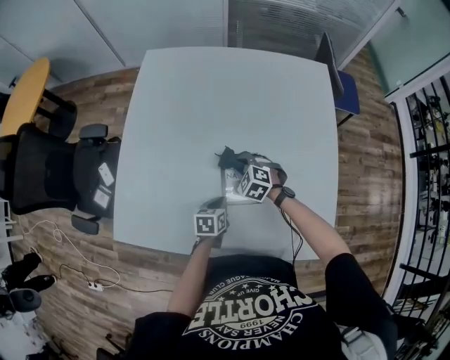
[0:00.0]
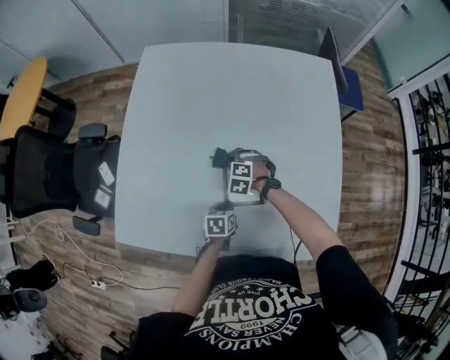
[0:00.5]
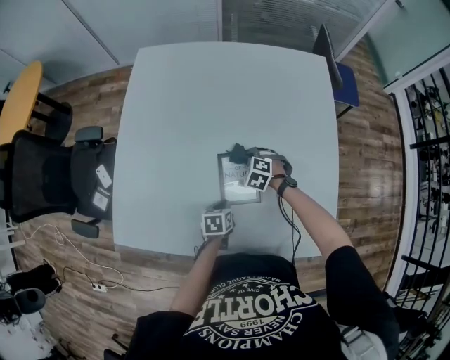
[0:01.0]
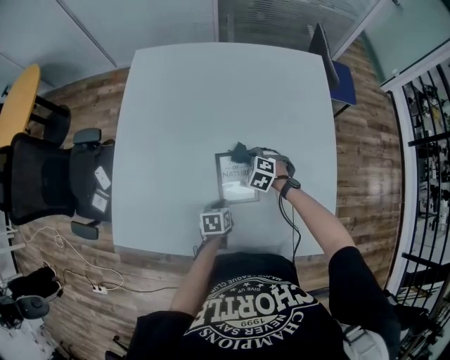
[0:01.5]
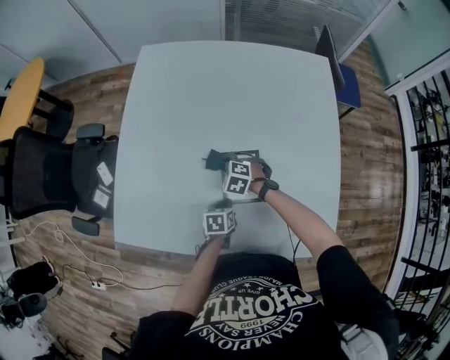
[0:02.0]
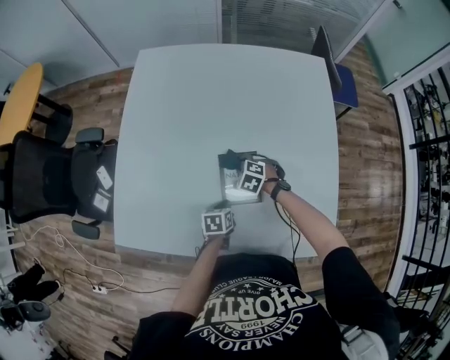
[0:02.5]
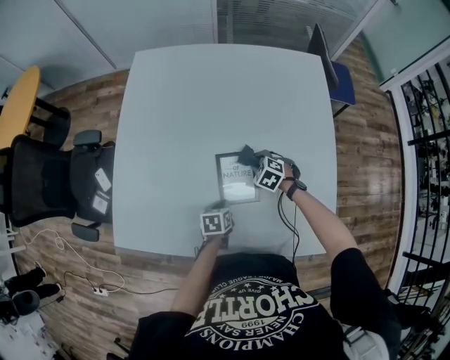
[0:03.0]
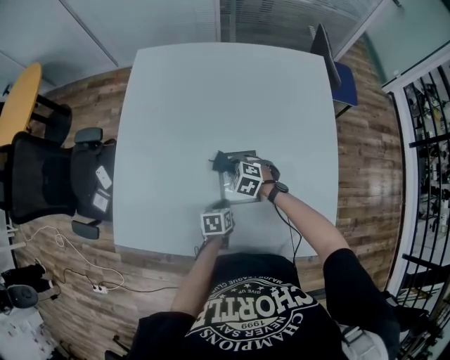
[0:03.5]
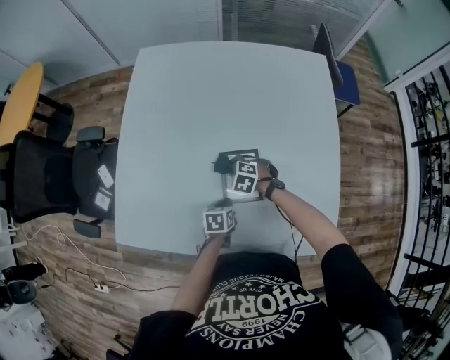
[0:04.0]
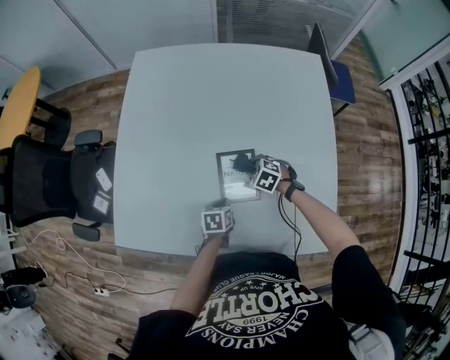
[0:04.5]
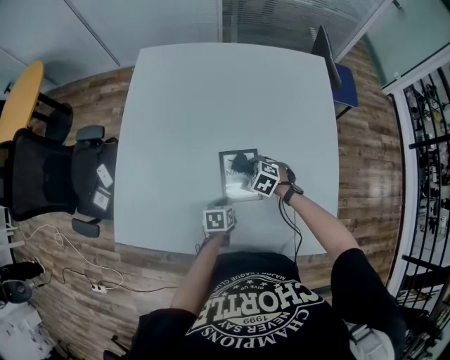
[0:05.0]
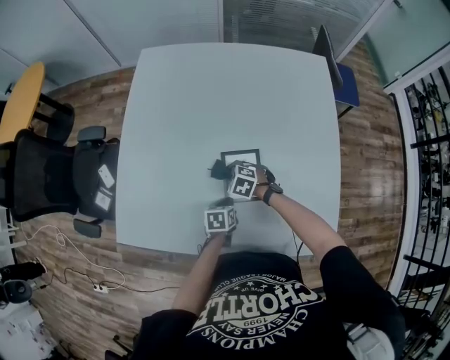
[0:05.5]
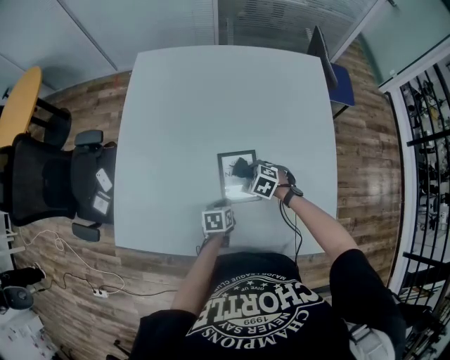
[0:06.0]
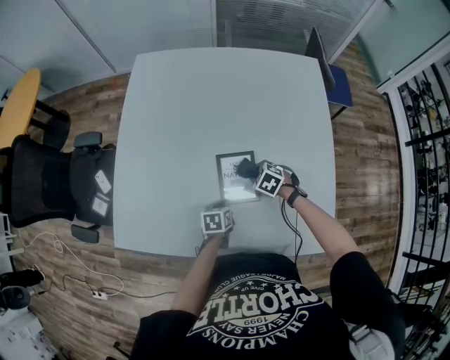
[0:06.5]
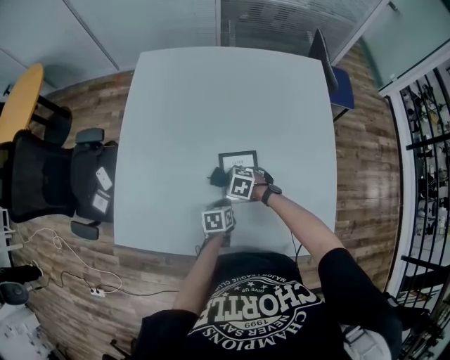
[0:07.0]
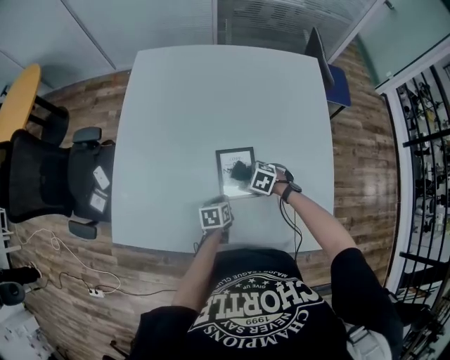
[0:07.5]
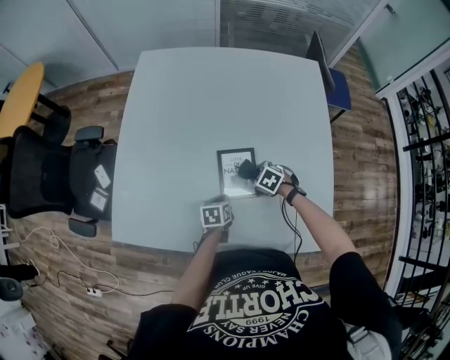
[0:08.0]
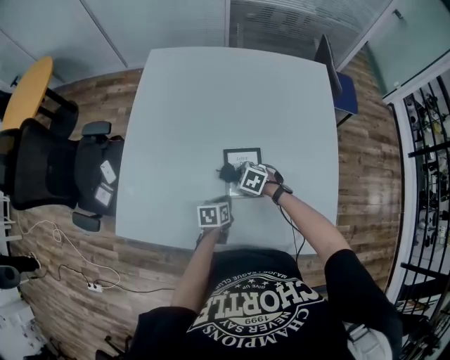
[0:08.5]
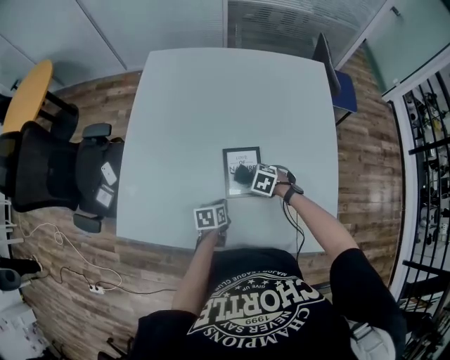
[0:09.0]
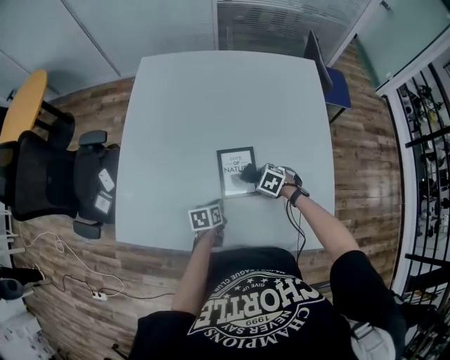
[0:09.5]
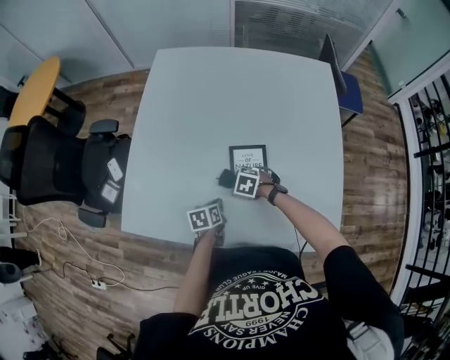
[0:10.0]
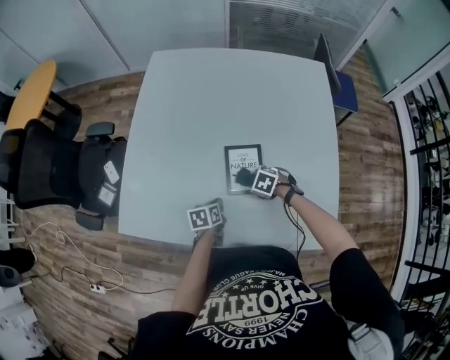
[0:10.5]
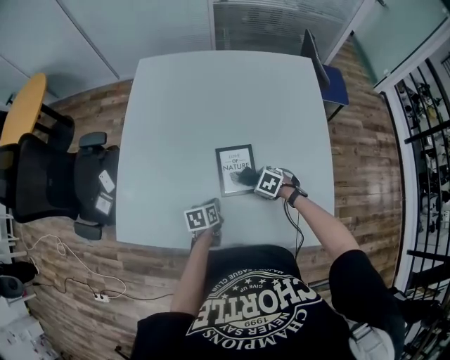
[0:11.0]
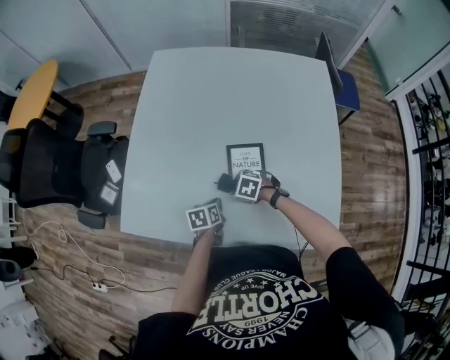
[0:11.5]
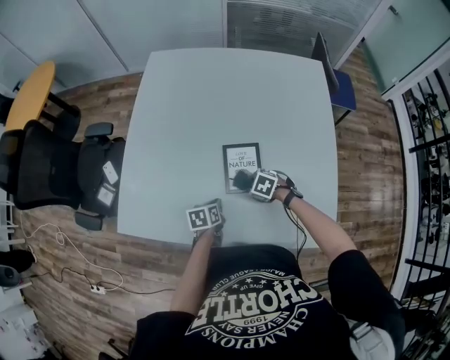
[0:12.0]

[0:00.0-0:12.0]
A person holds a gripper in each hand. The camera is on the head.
0:00.0 to 0:02.0: The right gripper goes about 5 cm to the left.
0:02.0 to 0:04.0: The right gripper reaches approximately 15 cm to the right, then returns.
0:04.0 to 0:06.0: The right gripper goes left and right, about 10 cm each way, reversing 2 times.
0:08.0 to 0:10.0: The right gripper changes place by about 15 cm, while the left gripper ends up approximately 10 cm from where it was.
0:10.0 to 0:12.0: The right gripper changes place by roughly 10 cm.

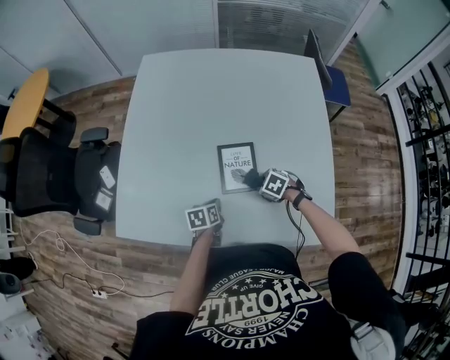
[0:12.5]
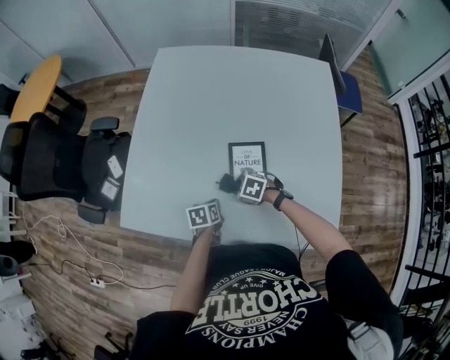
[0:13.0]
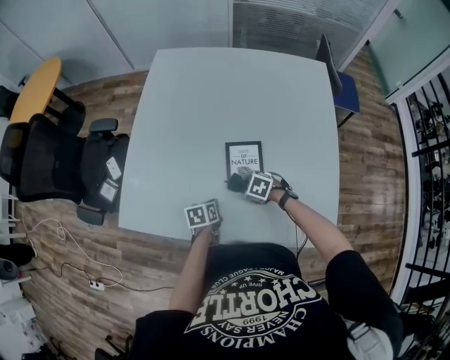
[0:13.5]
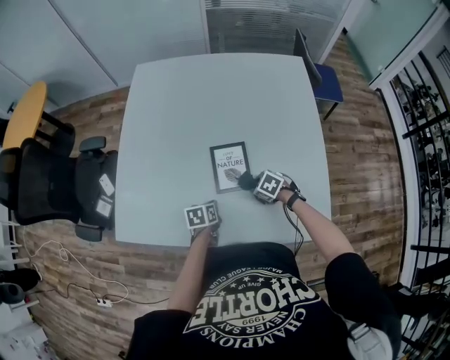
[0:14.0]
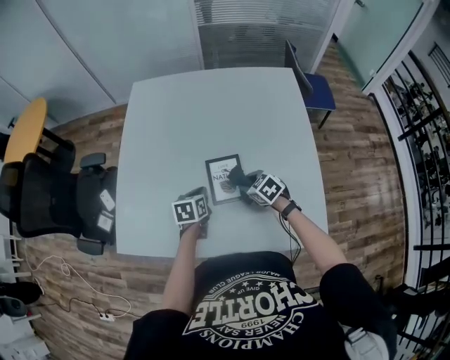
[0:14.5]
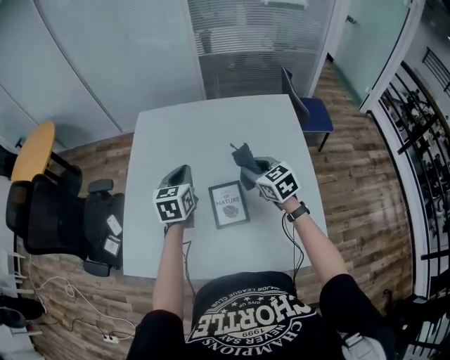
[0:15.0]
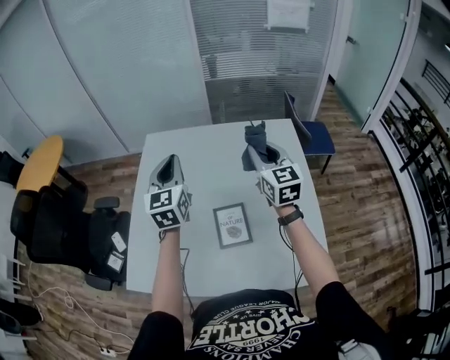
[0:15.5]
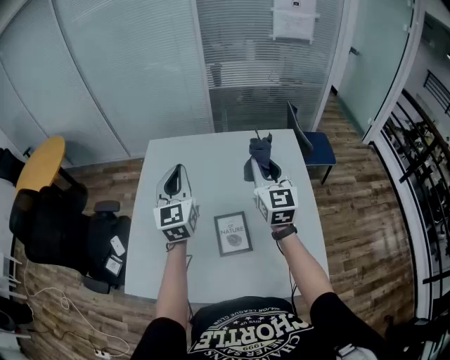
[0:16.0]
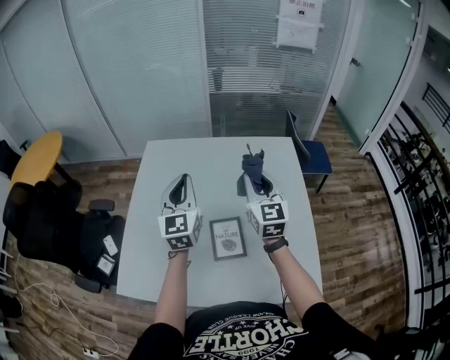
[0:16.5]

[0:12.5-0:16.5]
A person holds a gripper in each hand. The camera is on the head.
0:12.5 to 0:14.5: The grippers both shift upward by some 10 cm. The right gripper rotates approximately 30 degrees.
0:14.5 to 0:16.5: Both grippers travel together upward, approximately 35 cm. The right gripper points its fingers roughly 50 degrees further upward; the left gripper points its fingers approximately 50 degrees further upward.

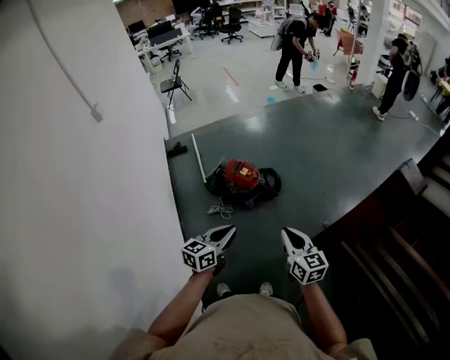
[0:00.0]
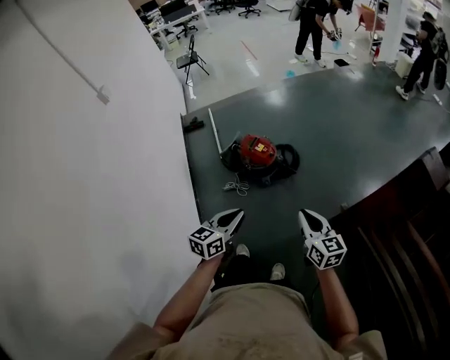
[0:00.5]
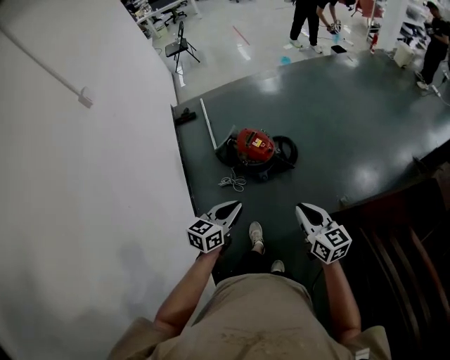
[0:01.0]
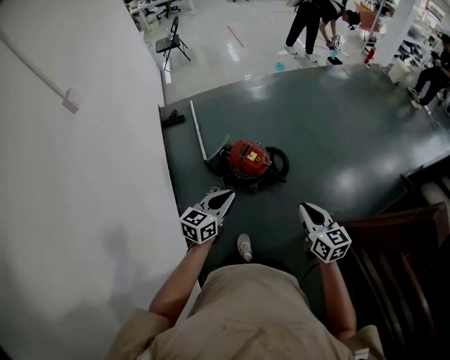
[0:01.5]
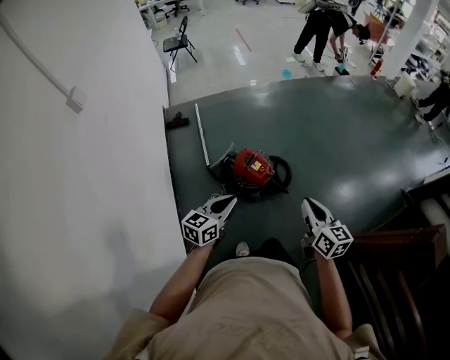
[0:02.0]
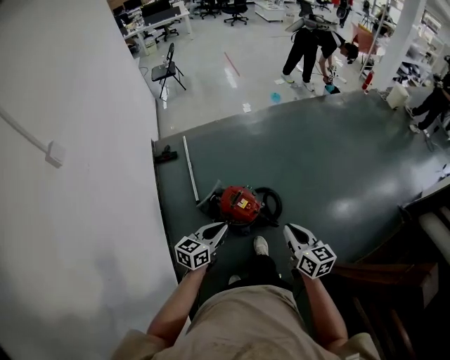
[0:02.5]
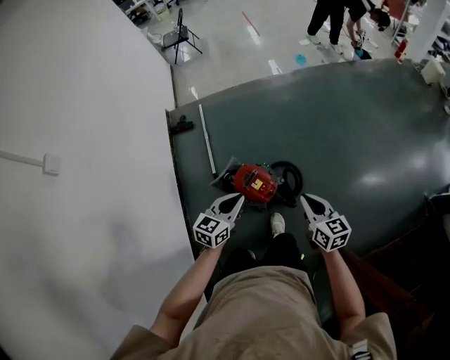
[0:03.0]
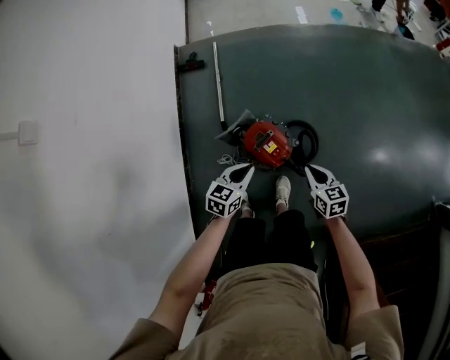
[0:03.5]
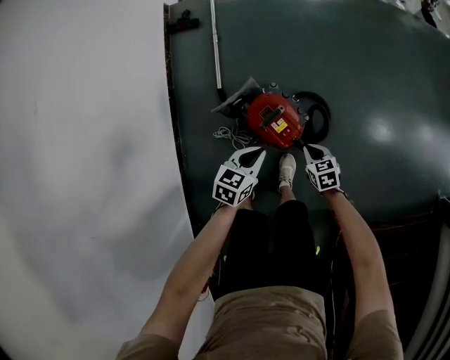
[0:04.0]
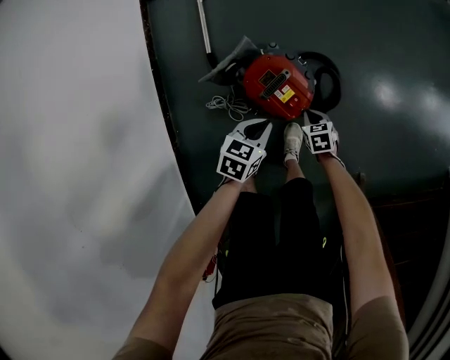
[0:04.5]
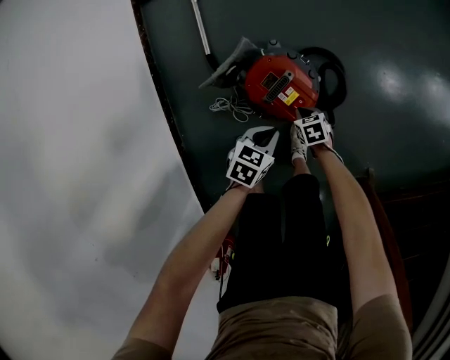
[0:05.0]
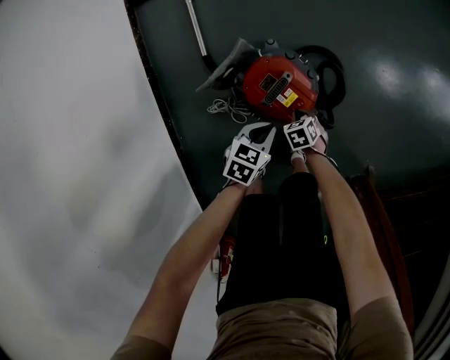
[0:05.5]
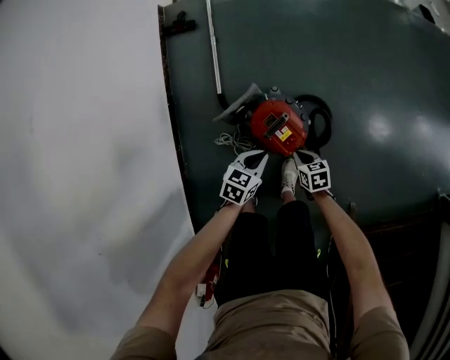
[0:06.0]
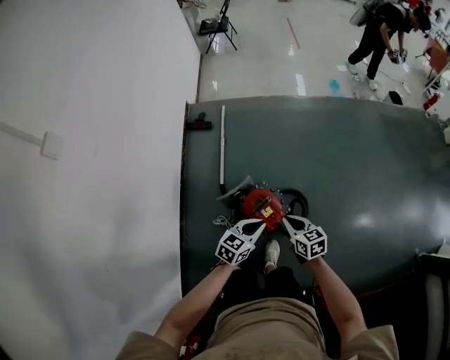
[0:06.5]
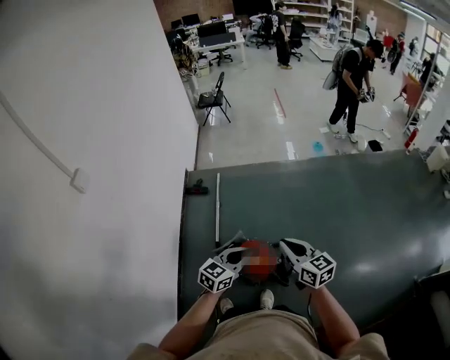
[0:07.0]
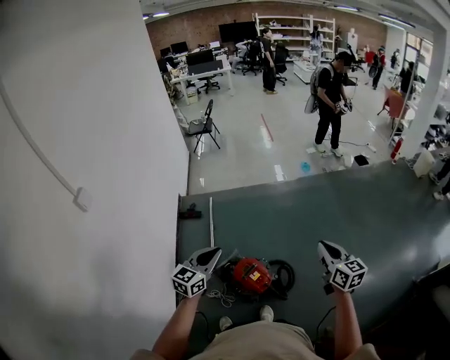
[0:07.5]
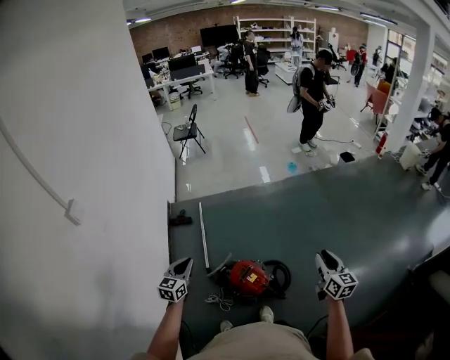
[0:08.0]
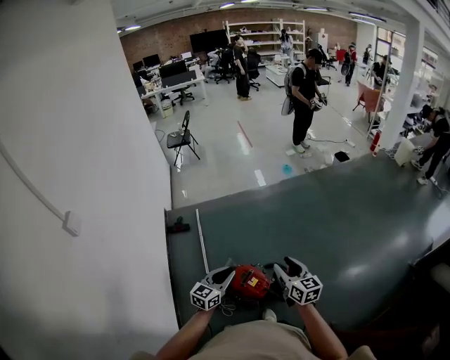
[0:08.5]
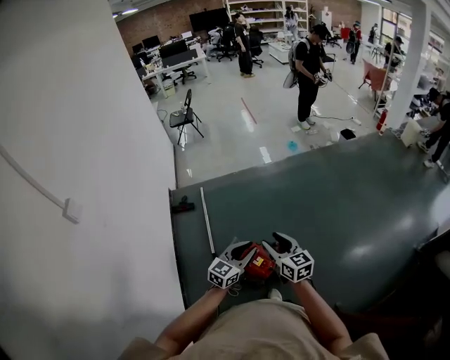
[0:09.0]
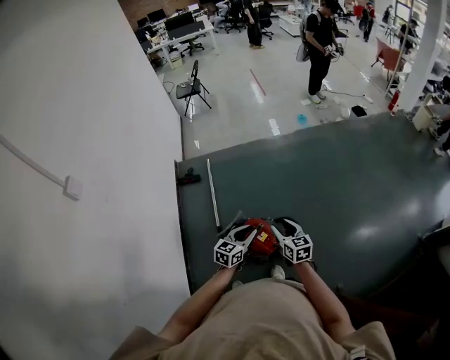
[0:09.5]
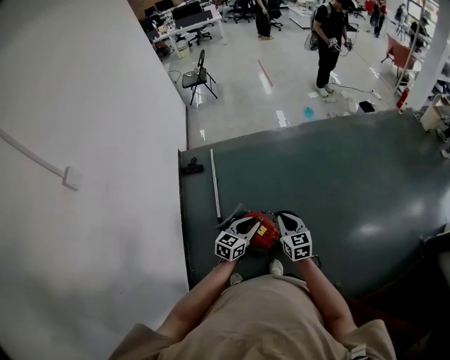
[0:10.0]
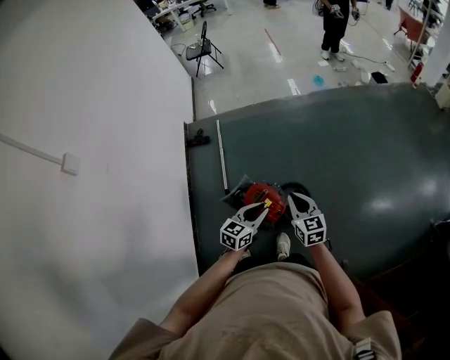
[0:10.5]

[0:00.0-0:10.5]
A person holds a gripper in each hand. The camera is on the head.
0:00.0 to 0:02.0: The right gripper moves forward, approximately 30 cm; the left gripper heads forward and to the left, covering some 35 cm.
0:02.0 to 0:04.0: The two grippers go approximately 60 cm downward and forward. The left gripper rotates roughly 30 degrees, while the right gripper tilts its fingers roughly 40 degrees downward.
0:04.0 to 0:06.5: Both grippers travel together upward, approximately 25 cm. The right gripper changes its angle by about 20 degrees.
0:06.5 to 0:08.5: The grippers both shift upward by about 20 cm. The right gripper rotates roughly 30 degrees, and opens its fingers, while the left gripper changes its angle by some 20 degrees.
0:08.5 to 0:10.5: The left gripper goes about 15 cm to the right and downward, while the right gripper moves downward, about 10 cm, and closes its fingers.
